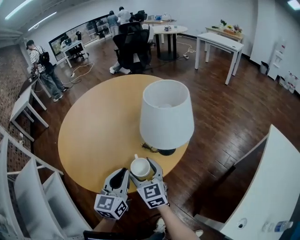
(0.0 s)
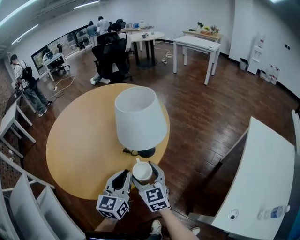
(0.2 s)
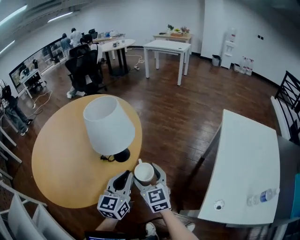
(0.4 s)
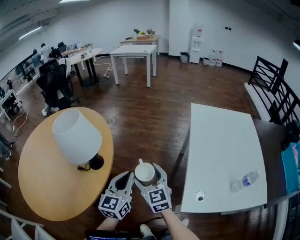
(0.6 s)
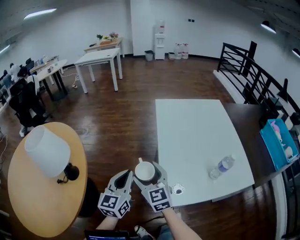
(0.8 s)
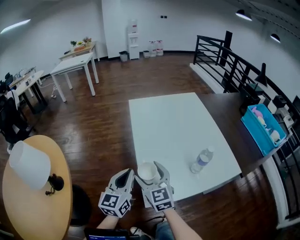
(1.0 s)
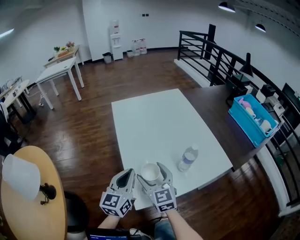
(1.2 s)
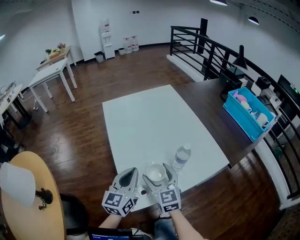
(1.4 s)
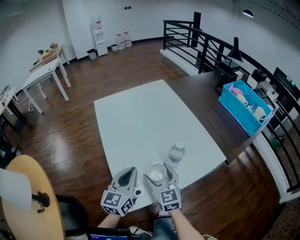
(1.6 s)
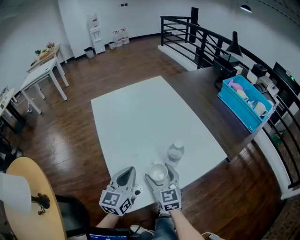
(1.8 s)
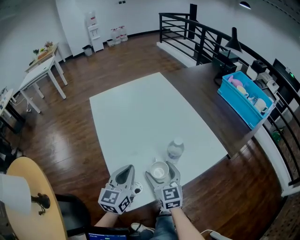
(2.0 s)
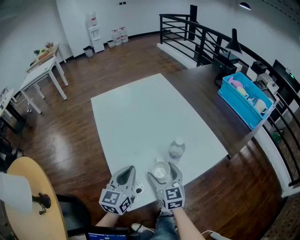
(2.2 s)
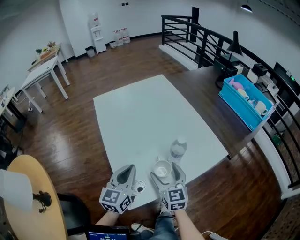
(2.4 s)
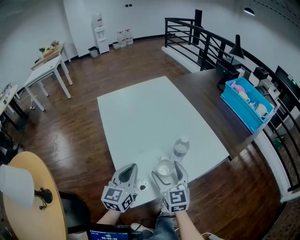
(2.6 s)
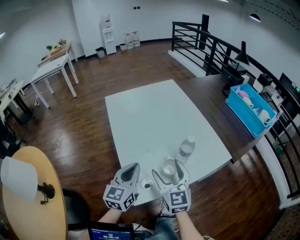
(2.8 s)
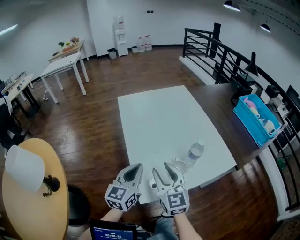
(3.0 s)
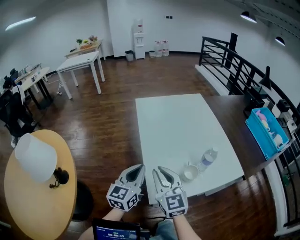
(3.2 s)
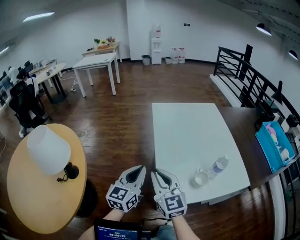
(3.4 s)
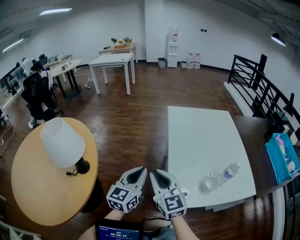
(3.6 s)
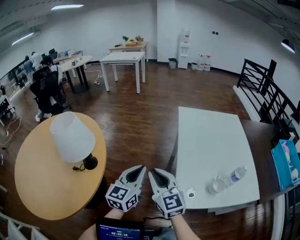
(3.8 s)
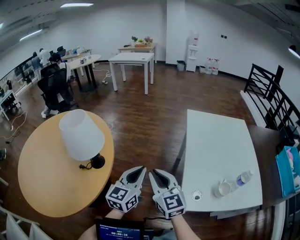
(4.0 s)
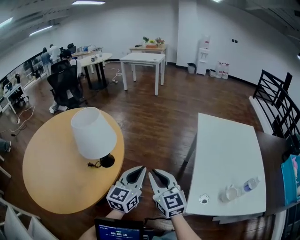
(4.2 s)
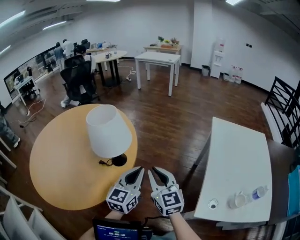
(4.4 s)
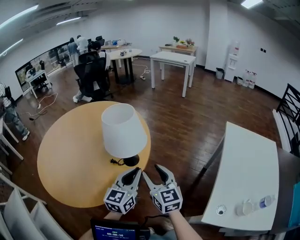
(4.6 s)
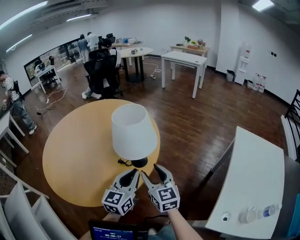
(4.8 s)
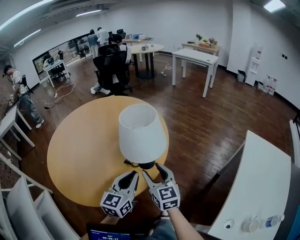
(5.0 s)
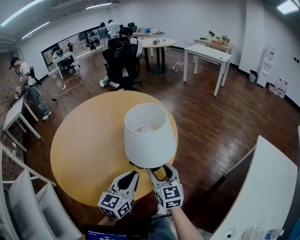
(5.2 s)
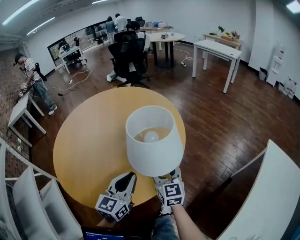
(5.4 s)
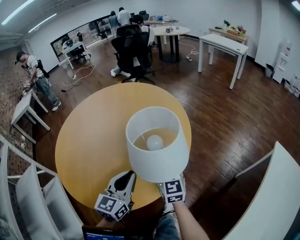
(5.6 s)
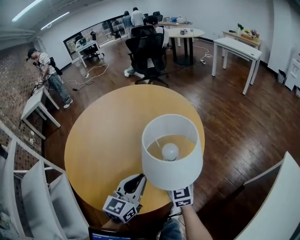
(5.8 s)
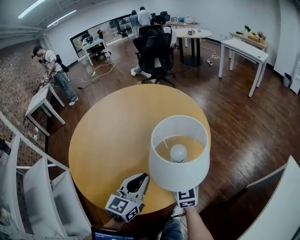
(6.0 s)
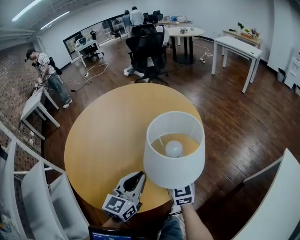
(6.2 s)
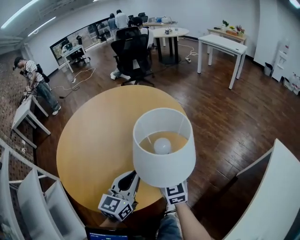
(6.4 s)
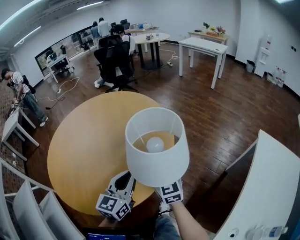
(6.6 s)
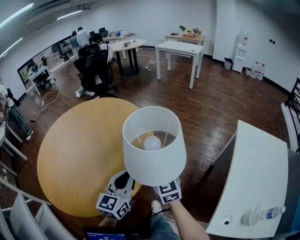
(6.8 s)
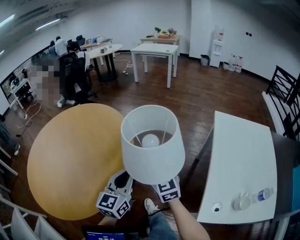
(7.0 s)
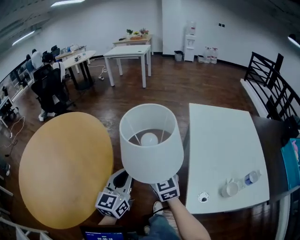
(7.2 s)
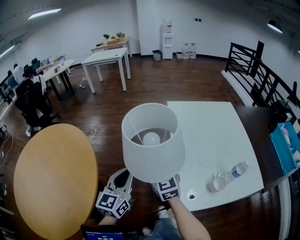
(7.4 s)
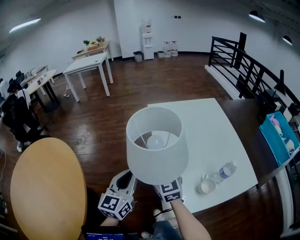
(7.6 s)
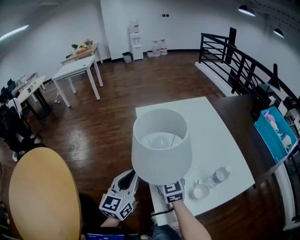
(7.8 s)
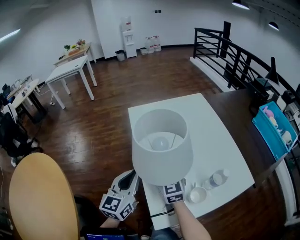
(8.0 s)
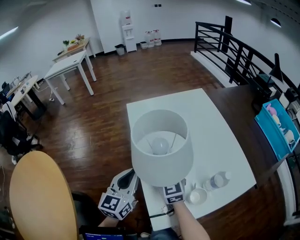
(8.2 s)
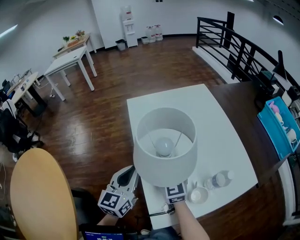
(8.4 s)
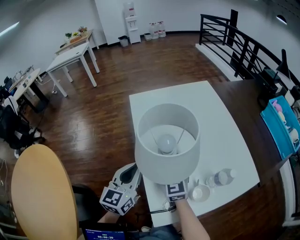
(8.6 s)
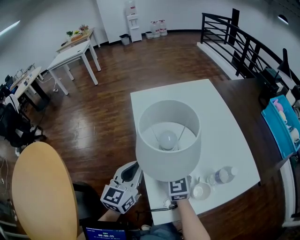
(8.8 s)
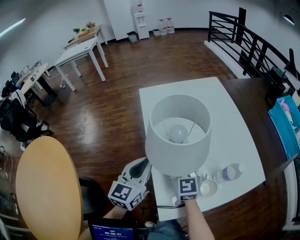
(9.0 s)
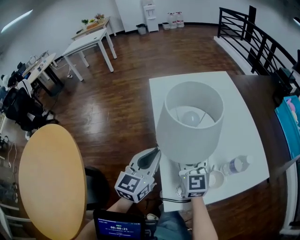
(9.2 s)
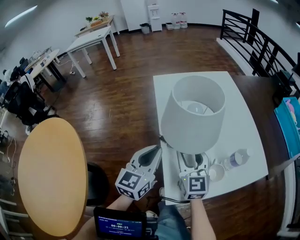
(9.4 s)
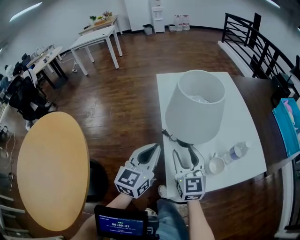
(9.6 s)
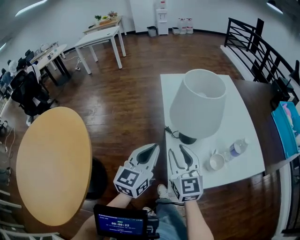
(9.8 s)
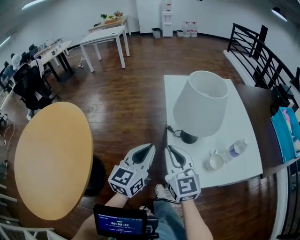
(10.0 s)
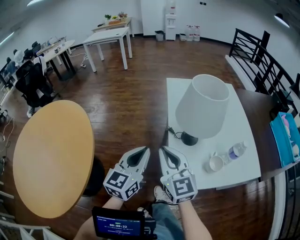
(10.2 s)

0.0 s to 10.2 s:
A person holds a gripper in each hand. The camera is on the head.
0.0 to 1.4 s: The two grippers travel together, some 70 cm. The left gripper swivels some 70 degrees, while the right gripper changes its angle by roughly 80 degrees.
1.4 to 3.0 s: The right gripper shifts about 5 cm upward, and closes its fingers.
3.0 to 4.4 s: The left gripper changes place by some 40 cm, and turns by about 40 degrees; the right gripper ends up some 40 cm from where it was, and turns by some 40 degrees.
4.4 to 5.8 s: The right gripper moves approximately 30 cm, and rotates roughly 20 degrees, while the left gripper shifts by roughly 25 cm, and turns by about 30 degrees.
5.8 to 7.2 s: The right gripper moves some 35 cm, and changes its angle by about 30 degrees, while the left gripper shifts by approximately 30 cm, and rotates about 40 degrees.
7.2 to 8.8 s: The right gripper ends up some 35 cm from where it was, and swivels about 30 degrees; the left gripper ends up some 35 cm from where it was, and changes its angle by roughly 30 degrees.
8.8 to 10.2 s: The right gripper is displaced backward, to the left and upward by about 25 cm, changes its angle by about 20 degrees, and closes up. Meanwhile the left gripper heads backward and to the left, covering roughly 15 cm.

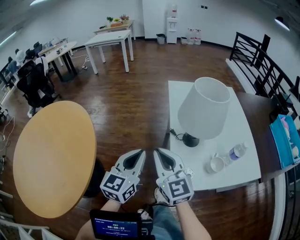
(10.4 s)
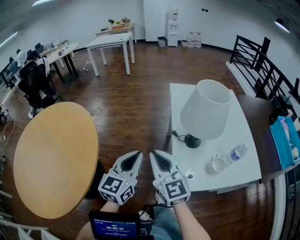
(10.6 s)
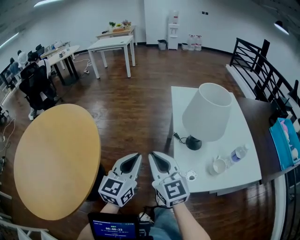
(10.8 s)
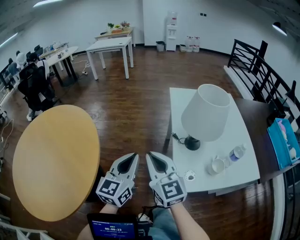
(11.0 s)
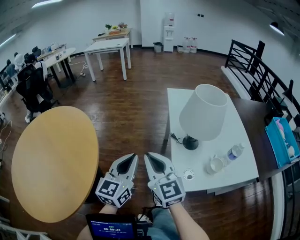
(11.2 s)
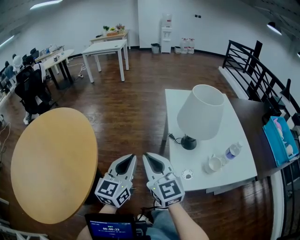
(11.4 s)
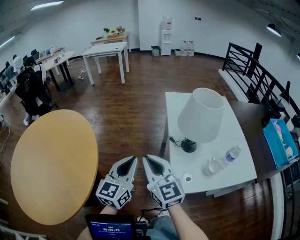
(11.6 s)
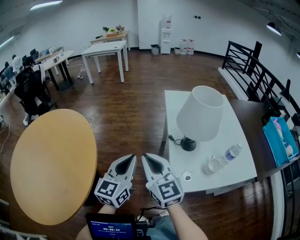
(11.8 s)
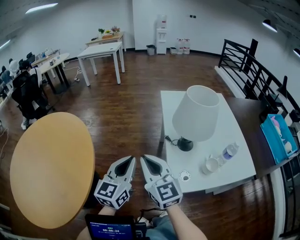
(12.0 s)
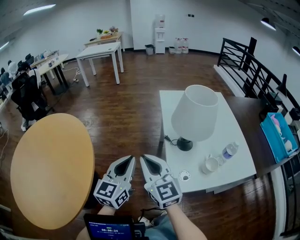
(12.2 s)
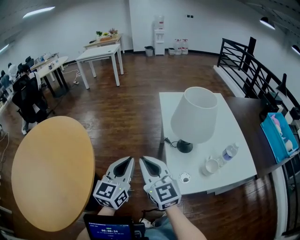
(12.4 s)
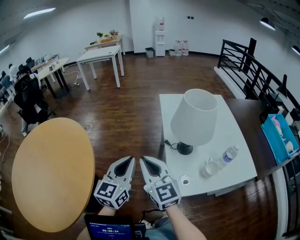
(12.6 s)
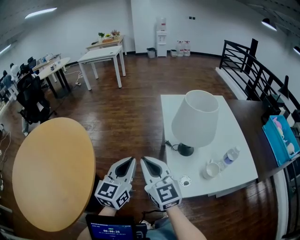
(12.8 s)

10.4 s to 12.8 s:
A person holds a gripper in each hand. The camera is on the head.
10.4 to 11.6 s: The right gripper shifts some 5 cm to the left; the left gripper changes place by about 5 cm.
11.6 to 12.8 s: The grippers stay close to where they were, moving slightly.

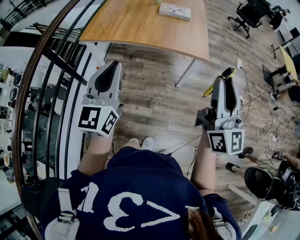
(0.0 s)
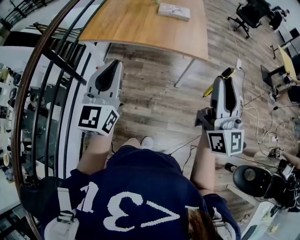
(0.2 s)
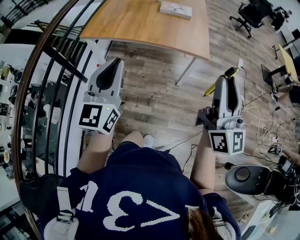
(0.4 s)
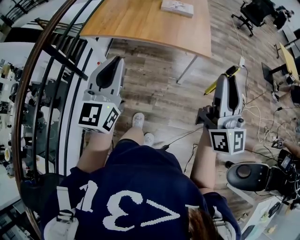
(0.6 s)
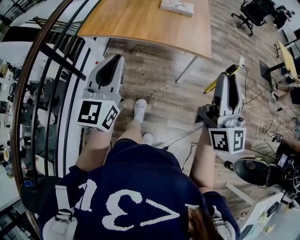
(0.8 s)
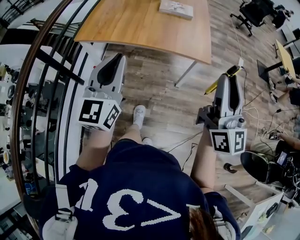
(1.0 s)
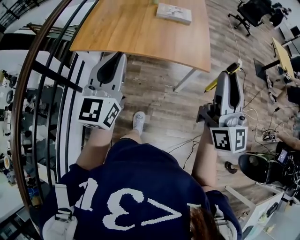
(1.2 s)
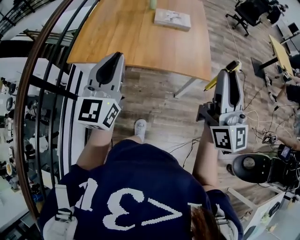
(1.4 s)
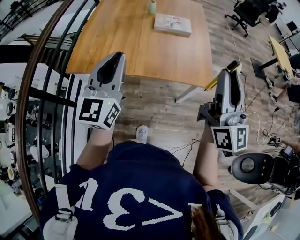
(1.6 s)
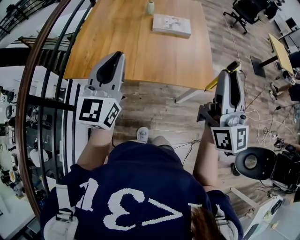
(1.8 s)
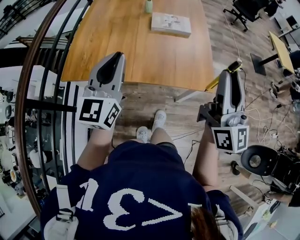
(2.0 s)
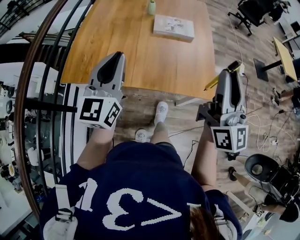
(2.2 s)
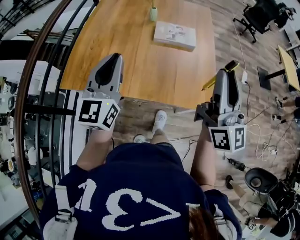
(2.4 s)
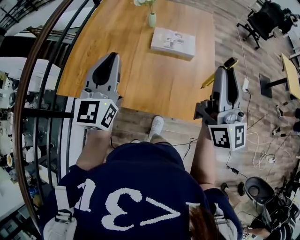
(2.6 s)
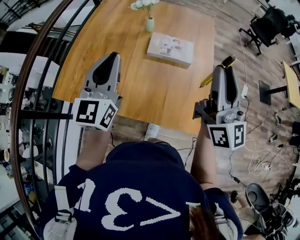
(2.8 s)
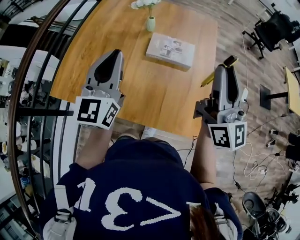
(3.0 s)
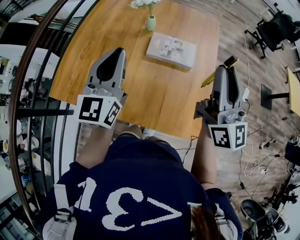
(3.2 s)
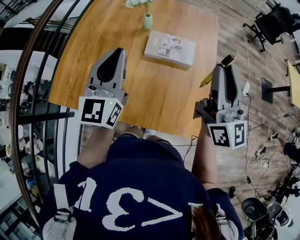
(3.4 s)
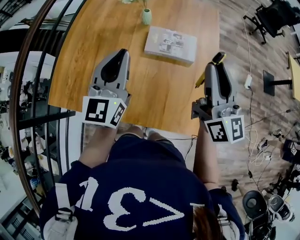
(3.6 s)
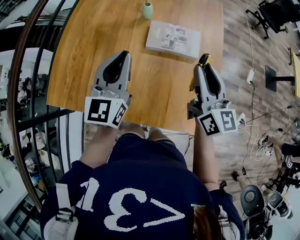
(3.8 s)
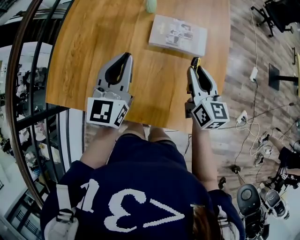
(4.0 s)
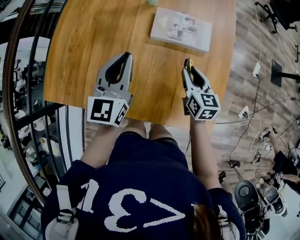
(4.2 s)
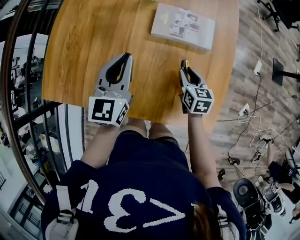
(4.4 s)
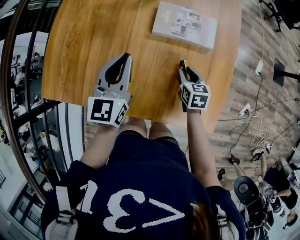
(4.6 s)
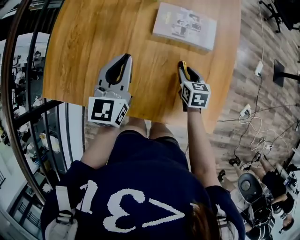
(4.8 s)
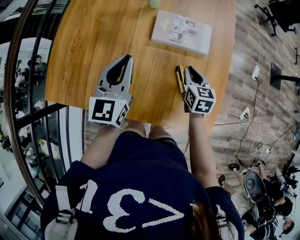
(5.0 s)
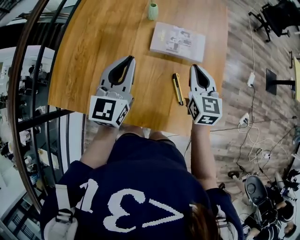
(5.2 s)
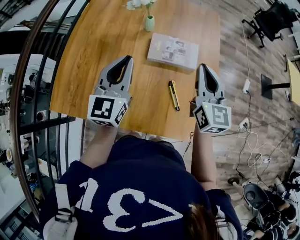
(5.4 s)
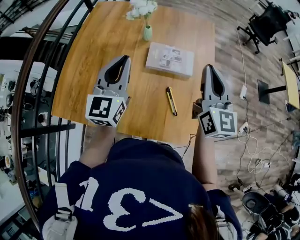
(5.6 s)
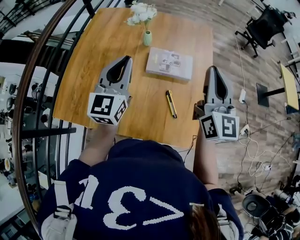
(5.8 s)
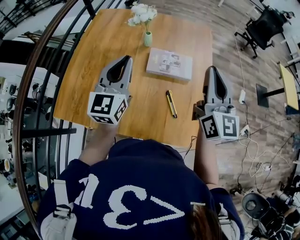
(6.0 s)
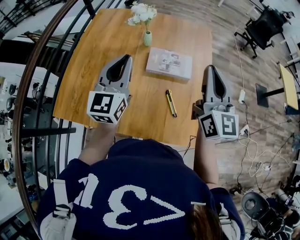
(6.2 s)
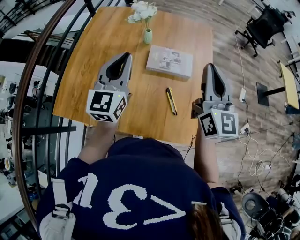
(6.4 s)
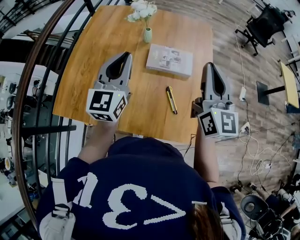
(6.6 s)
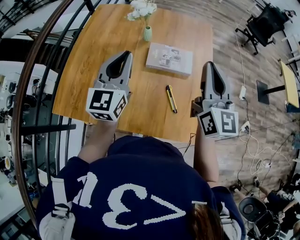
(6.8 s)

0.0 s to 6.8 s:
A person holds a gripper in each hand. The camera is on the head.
0.0 to 1.4 s: The two grippers go approximately 15 cm forward.
1.4 to 2.8 s: The grippers both shift forward by approximately 30 cm.
2.8 to 4.0 s: The left gripper is displaced downward and forward by about 20 cm; the right gripper heads downward, covering roughly 30 cm, and tips its fingers downward by approximately 40 degrees.
4.0 to 5.4 s: The right gripper shifts some 15 cm upward, and closes; the left gripper travels upward by about 10 cm.
5.4 to 6.8 s: The right gripper moves upward, approximately 10 cm. Meanwhile the left gripper heads upward, covering approximately 5 cm.

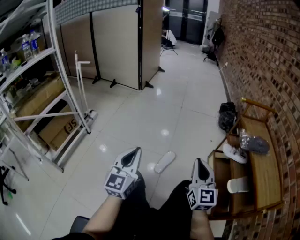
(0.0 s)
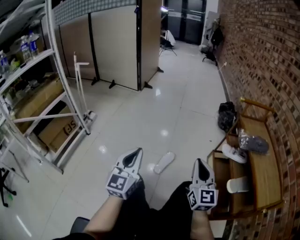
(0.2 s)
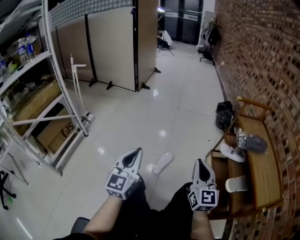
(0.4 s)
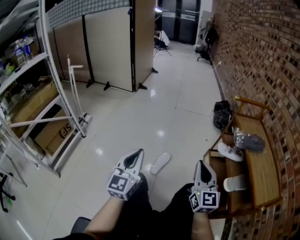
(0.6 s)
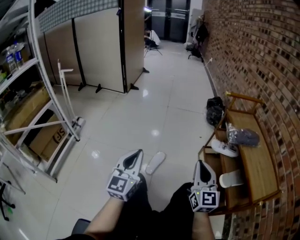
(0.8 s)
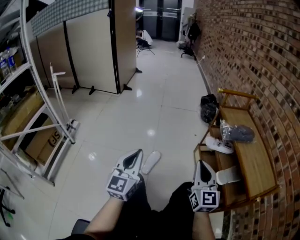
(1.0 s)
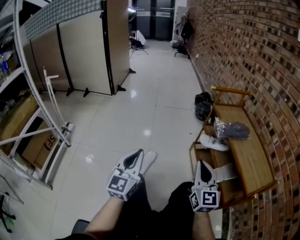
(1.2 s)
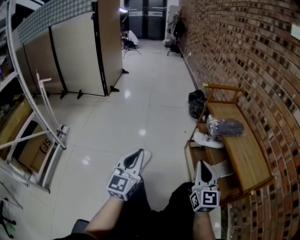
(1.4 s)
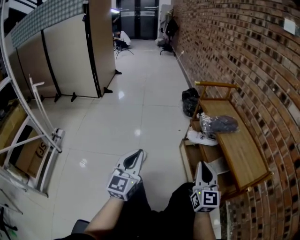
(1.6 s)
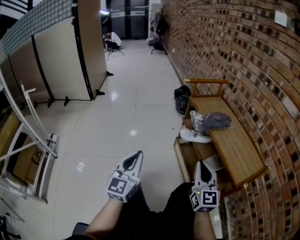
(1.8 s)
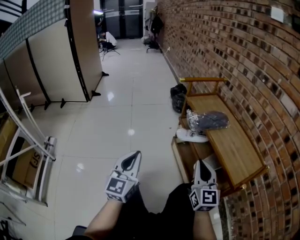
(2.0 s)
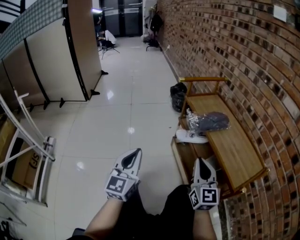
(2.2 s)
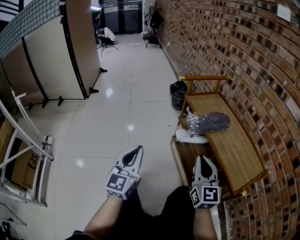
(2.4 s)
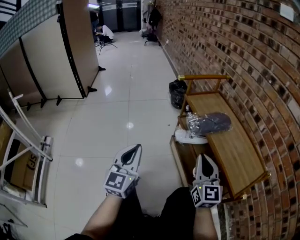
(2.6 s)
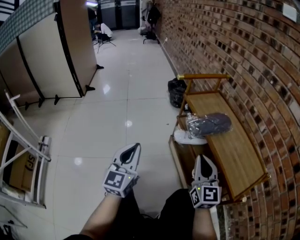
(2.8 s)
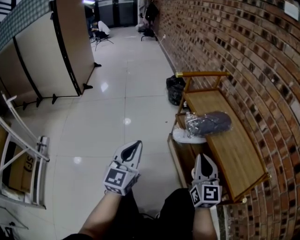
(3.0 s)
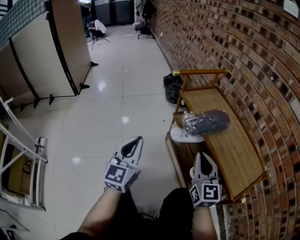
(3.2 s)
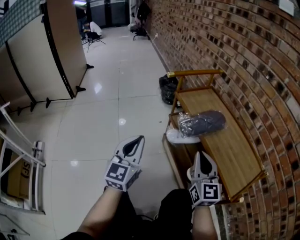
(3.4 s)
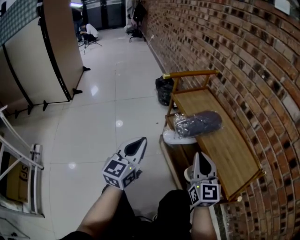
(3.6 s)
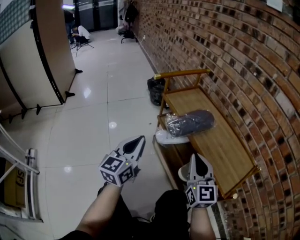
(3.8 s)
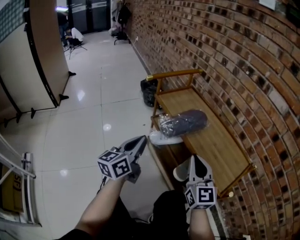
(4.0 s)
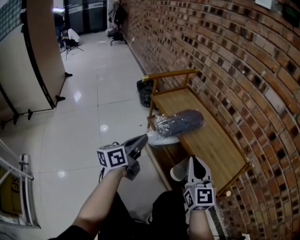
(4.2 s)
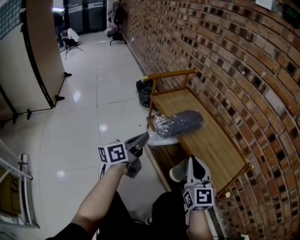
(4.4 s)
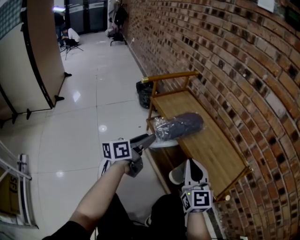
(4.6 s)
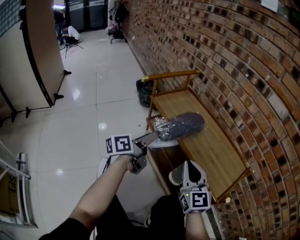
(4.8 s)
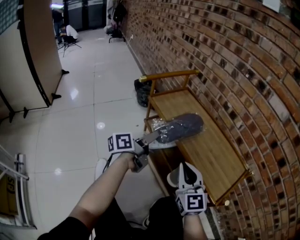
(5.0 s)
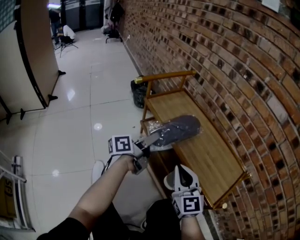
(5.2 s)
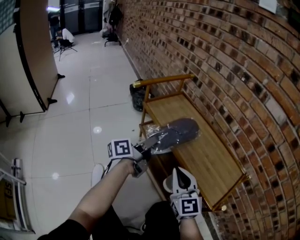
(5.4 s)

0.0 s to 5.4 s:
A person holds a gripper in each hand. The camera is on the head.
0.0 to 1.4 s: Both grippers travel together to the right, some 15 cm.
1.4 to 2.8 s: Both grippers travel together forward and to the right, about 15 cm.
2.8 to 4.0 s: The right gripper heads to the right, covering roughly 5 cm. Meanwhile the left gripper goes about 15 cm to the right and forward, and rotates approximately 40 degrees.
4.0 to 5.4 s: The left gripper is displaced forward and to the right by some 15 cm, turns by about 40 degrees, and opens, then closes once more.
